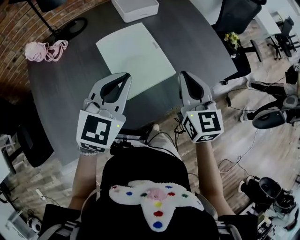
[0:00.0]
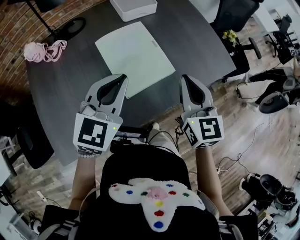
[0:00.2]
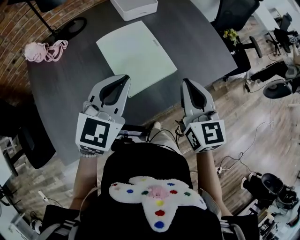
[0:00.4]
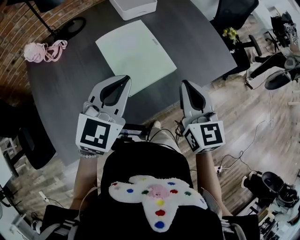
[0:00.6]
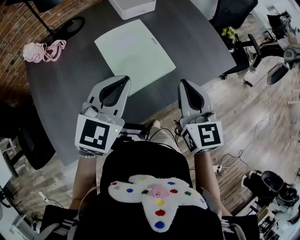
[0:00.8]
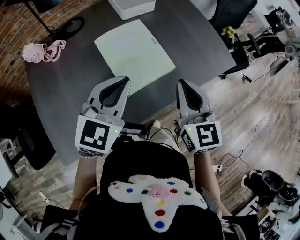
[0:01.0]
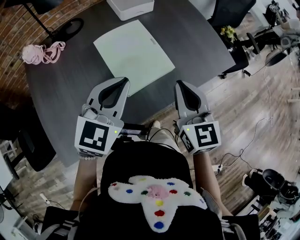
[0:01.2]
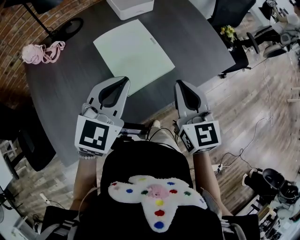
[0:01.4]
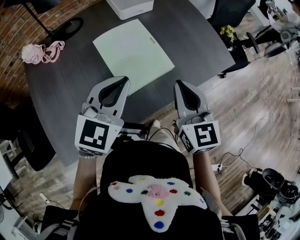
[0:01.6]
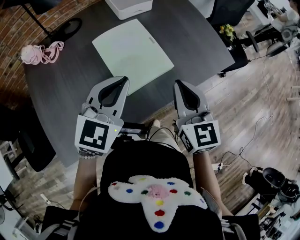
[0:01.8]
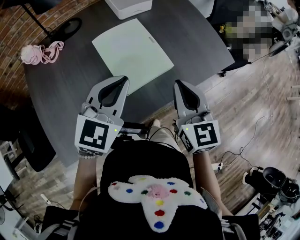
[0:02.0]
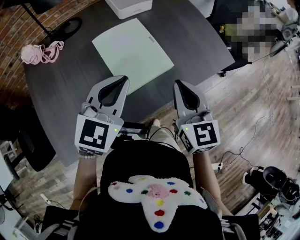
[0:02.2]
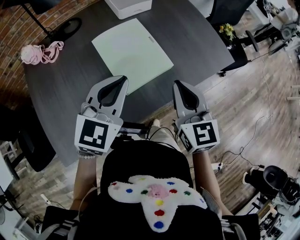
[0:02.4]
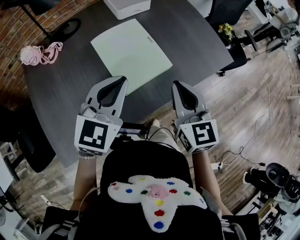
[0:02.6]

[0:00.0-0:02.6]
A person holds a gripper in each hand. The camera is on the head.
0:00.0 to 0:01.2: The right gripper travels backward by approximately 5 cm.
0:01.2 to 0:02.6: Neither gripper changes place.

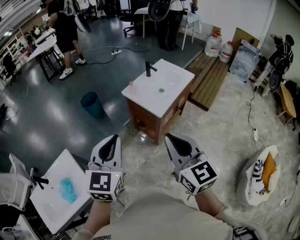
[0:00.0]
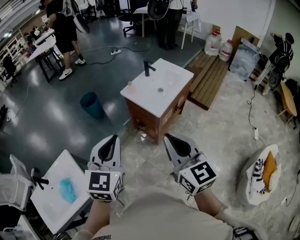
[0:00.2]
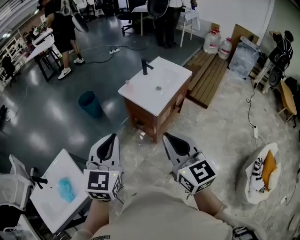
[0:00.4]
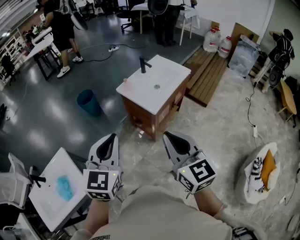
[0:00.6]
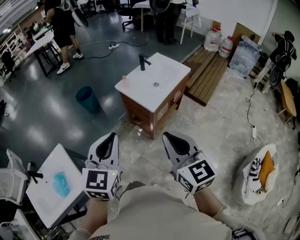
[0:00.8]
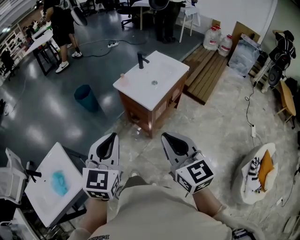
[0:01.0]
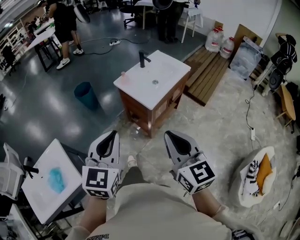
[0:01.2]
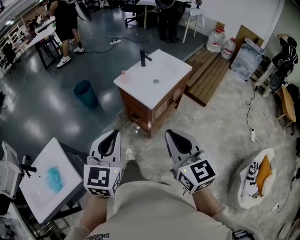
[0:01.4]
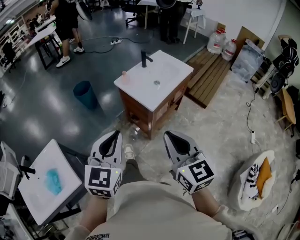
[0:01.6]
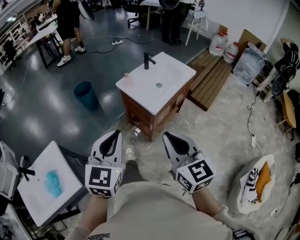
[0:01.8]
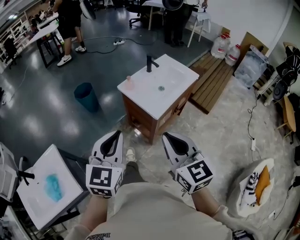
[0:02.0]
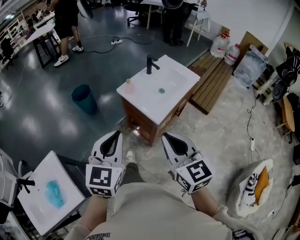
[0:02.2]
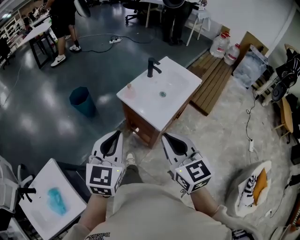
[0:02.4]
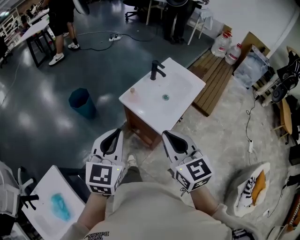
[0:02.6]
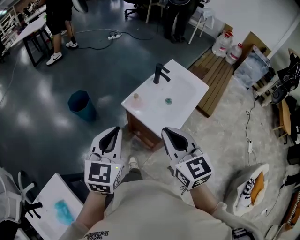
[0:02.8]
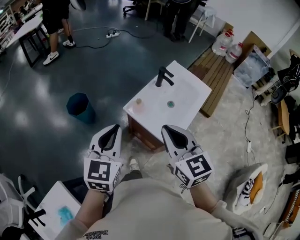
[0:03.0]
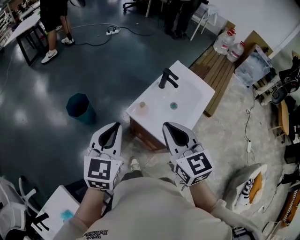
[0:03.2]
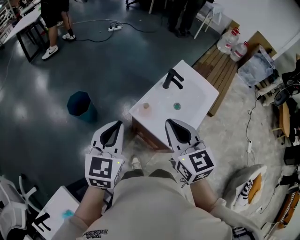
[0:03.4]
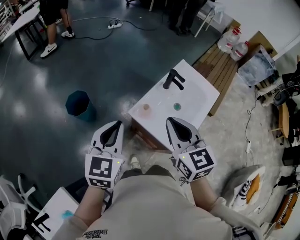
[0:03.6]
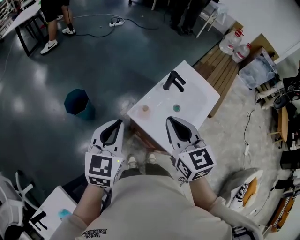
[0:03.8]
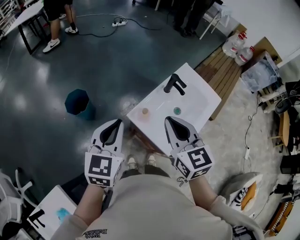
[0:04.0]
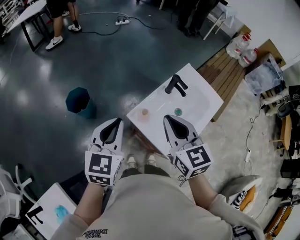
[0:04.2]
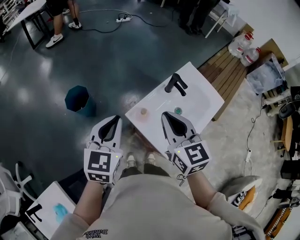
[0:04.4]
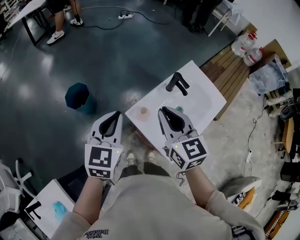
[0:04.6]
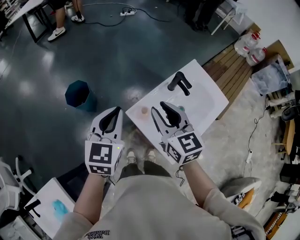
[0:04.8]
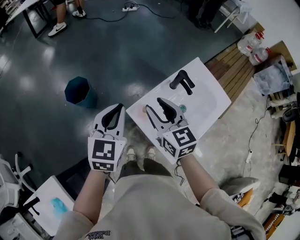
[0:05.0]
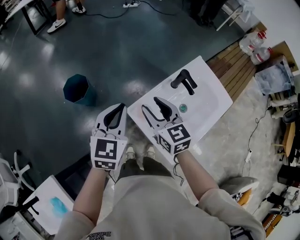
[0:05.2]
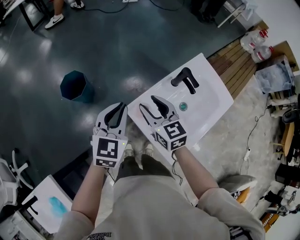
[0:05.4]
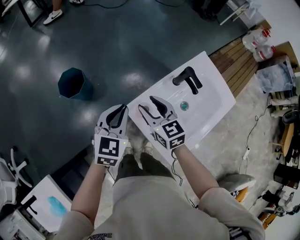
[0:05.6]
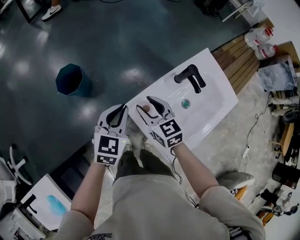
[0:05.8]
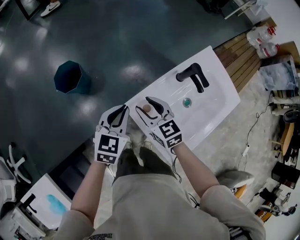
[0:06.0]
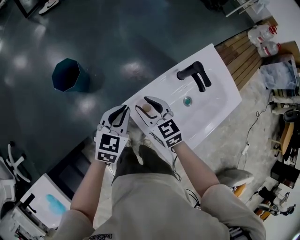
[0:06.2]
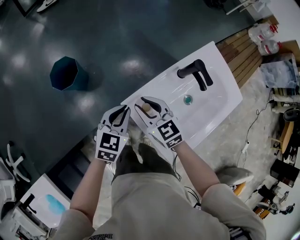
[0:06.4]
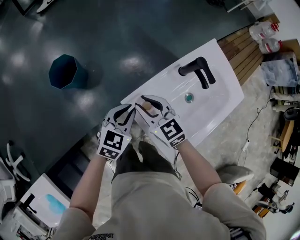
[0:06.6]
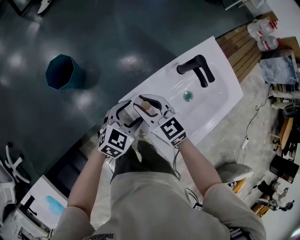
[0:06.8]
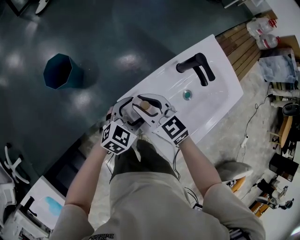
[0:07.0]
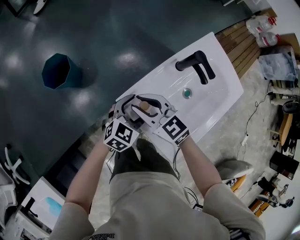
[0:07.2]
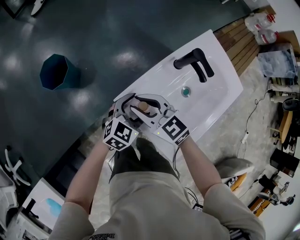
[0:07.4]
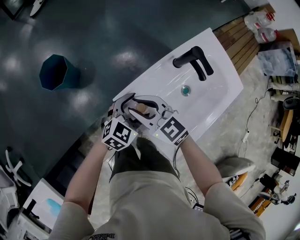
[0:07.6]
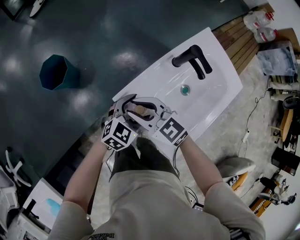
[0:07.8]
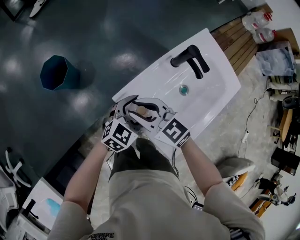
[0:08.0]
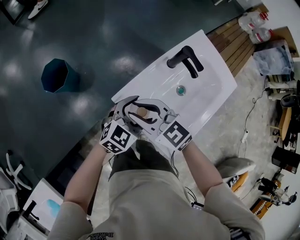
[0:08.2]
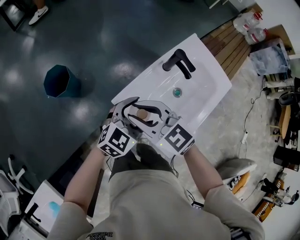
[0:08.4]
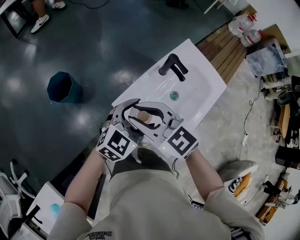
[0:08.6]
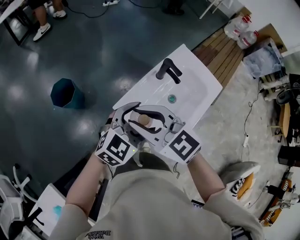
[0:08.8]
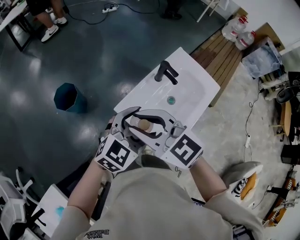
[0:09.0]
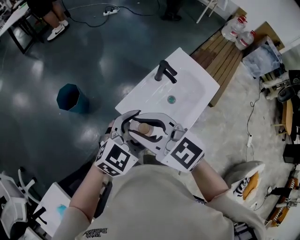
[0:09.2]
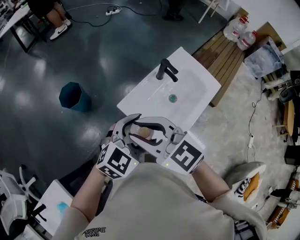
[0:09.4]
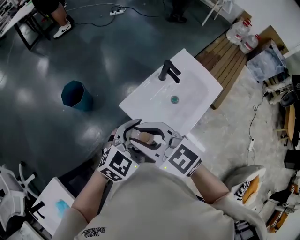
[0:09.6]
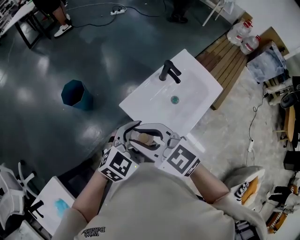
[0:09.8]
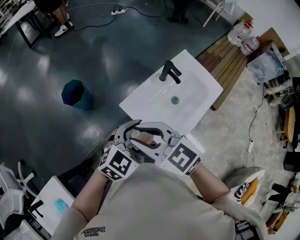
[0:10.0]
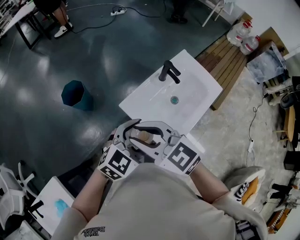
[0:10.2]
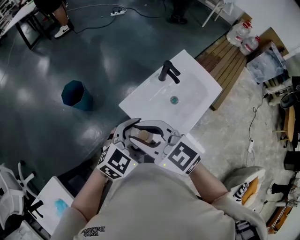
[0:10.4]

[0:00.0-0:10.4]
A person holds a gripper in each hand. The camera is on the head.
0:00.0 to 0:01.4: The grippers both shift to the right and downward by approximately 10 cm.
0:01.4 to 0:03.0: The pair of grippers is taken forward, roughly 40 cm.
0:03.0 to 0:04.4: The grippers both shift forward by some 15 cm.
0:04.4 to 0:06.0: The right gripper travels downward and forward by about 25 cm, rotates roughly 20 degrees, and opens. The left gripper goes about 20 cm downward.
0:06.0 to 0:07.4: The left gripper travels downward and to the right by some 15 cm, turns by about 20 degrees, and opens up.
0:07.4 to 0:09.0: The two grippers go roughly 25 cm upward.
0:09.0 to 0:10.4: The grippers both shift backward by some 5 cm.

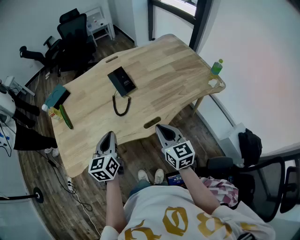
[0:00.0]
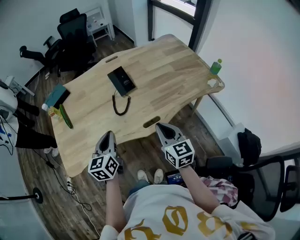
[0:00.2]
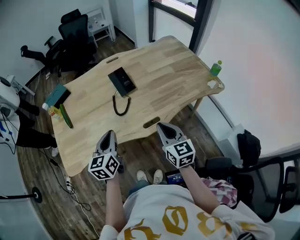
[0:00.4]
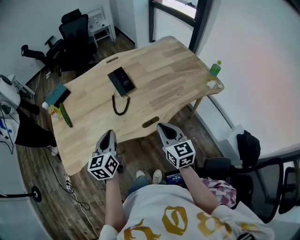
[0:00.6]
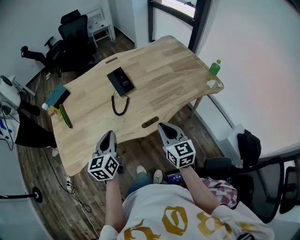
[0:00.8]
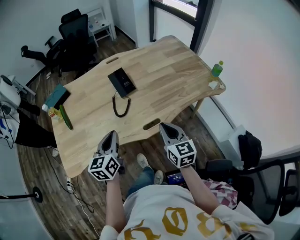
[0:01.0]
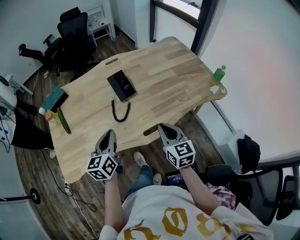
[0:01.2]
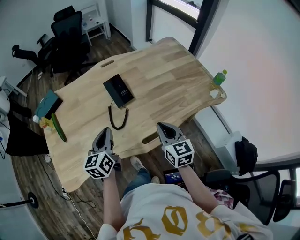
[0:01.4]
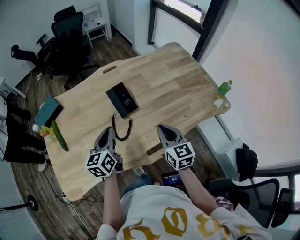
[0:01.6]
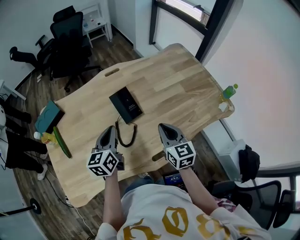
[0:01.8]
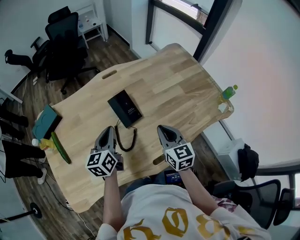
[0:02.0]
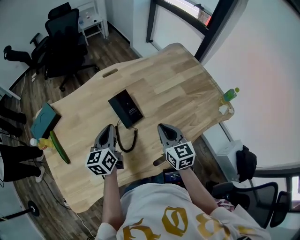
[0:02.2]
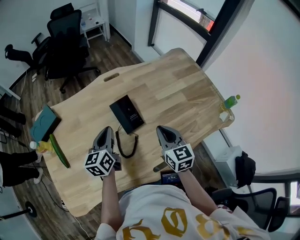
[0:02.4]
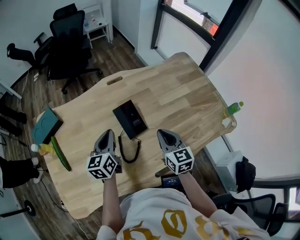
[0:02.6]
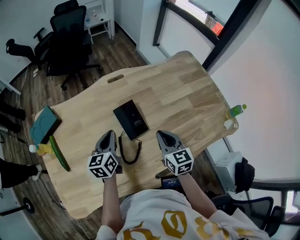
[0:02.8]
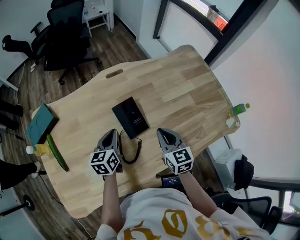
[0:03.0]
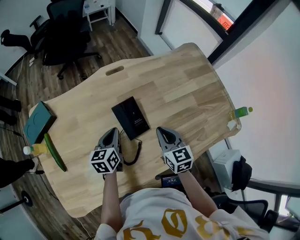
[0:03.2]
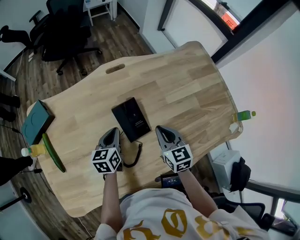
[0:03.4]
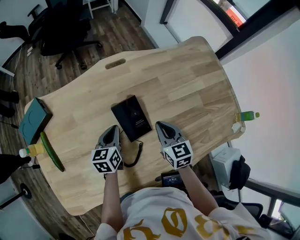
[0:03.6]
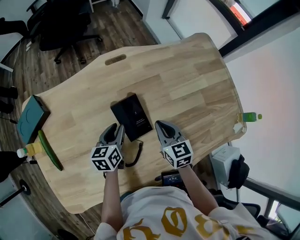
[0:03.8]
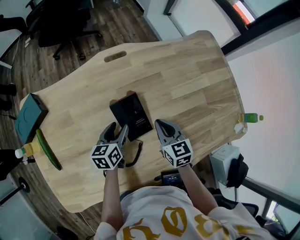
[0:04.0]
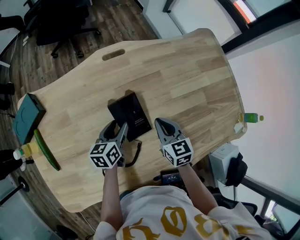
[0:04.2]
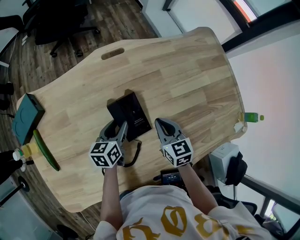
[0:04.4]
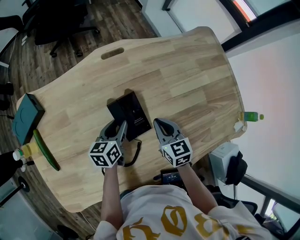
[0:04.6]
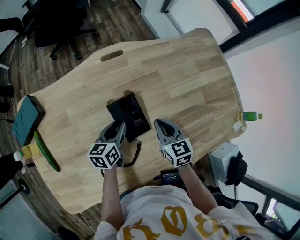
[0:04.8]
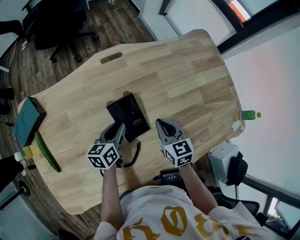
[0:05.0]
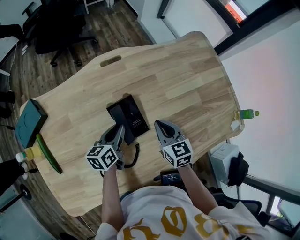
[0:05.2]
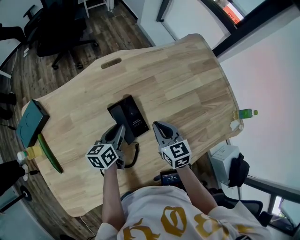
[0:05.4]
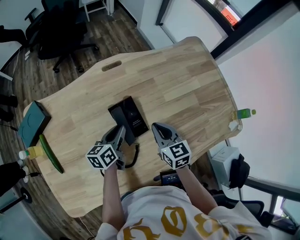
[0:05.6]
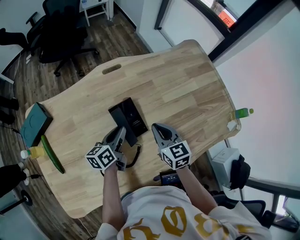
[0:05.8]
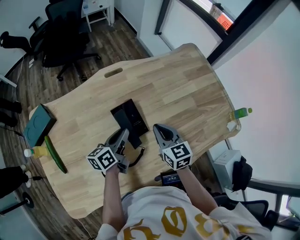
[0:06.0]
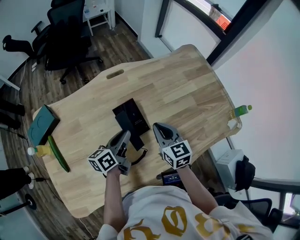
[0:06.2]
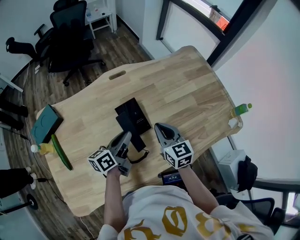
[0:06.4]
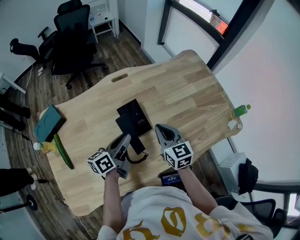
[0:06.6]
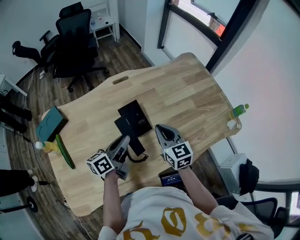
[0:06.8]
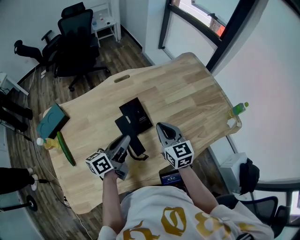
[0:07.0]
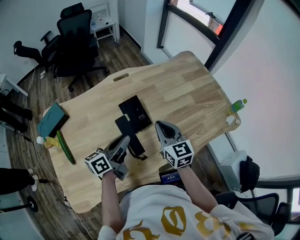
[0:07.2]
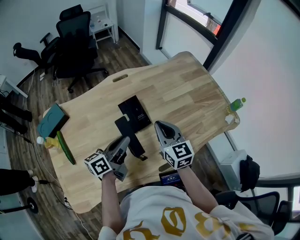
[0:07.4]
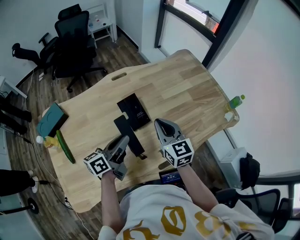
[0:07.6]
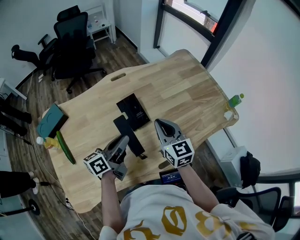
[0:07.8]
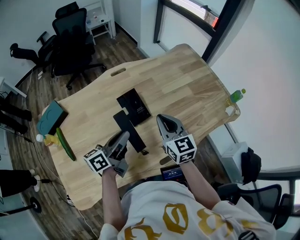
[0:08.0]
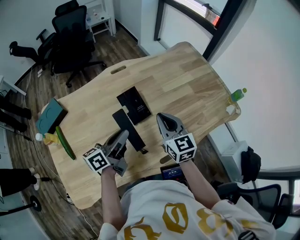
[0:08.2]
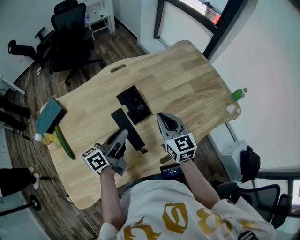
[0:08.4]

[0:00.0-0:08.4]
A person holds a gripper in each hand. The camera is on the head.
0:00.0 to 0:01.4: The two grippers go roughly 10 cm forward.
0:01.4 to 0:02.8: The grippers both shift forward by some 20 cm.
0:02.8 to 0:04.2: The two grippers go approximately 10 cm downward and forward. The left gripper opens.
0:04.2 to 0:05.6: The left gripper closes up.
0:05.6 to 0:07.0: Both grippers travel together upward and backward, about 15 cm. The left gripper turns by approximately 20 degrees.
0:07.0 to 0:08.4: The grippers move only a little.

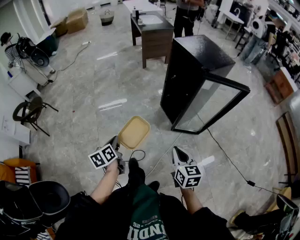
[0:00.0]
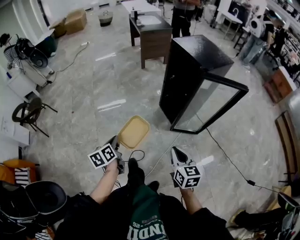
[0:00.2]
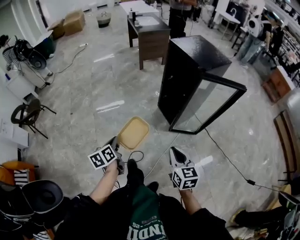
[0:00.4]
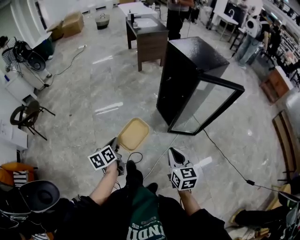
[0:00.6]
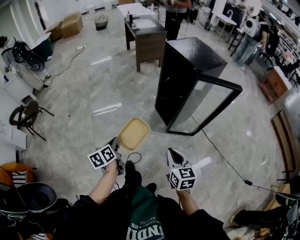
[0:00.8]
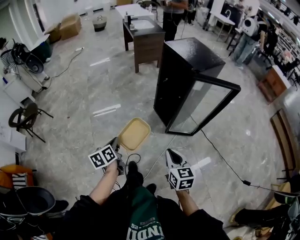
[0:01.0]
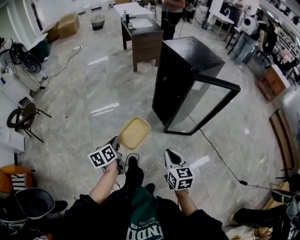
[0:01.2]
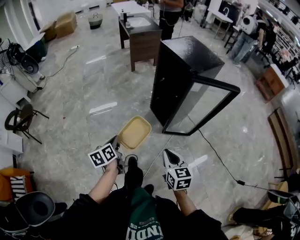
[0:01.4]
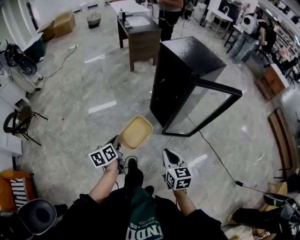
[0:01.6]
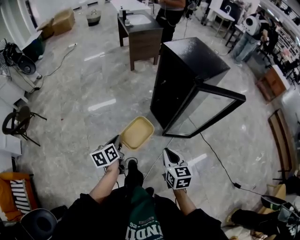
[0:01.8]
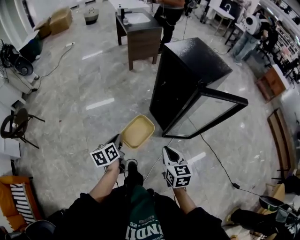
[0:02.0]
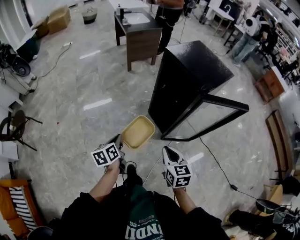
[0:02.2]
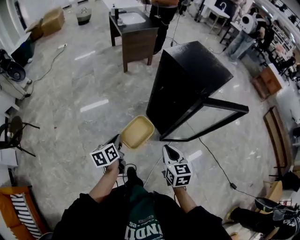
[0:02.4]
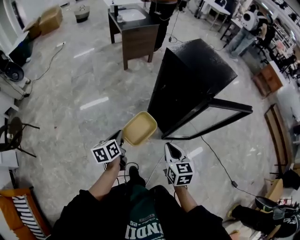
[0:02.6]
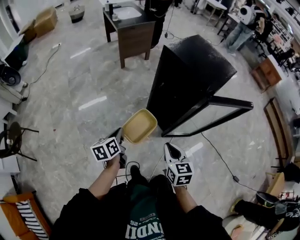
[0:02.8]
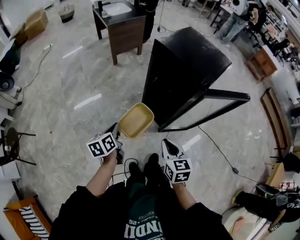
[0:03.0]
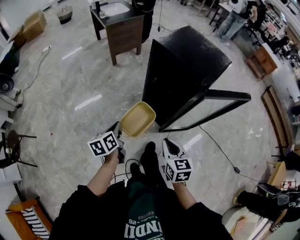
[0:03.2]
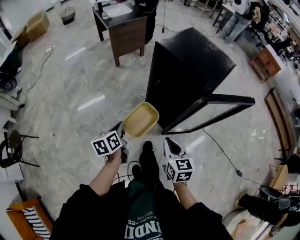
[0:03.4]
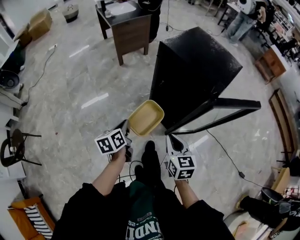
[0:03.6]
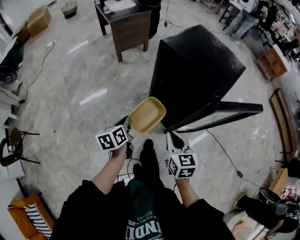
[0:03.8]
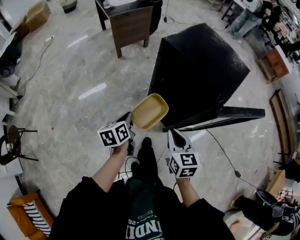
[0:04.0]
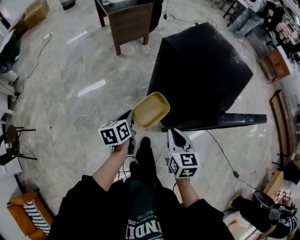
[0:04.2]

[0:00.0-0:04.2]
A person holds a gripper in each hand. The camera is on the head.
0:00.0 to 0:01.4: The left gripper moves some 5 cm.
0:01.4 to 0:02.8: Both grippers move forward, about 25 cm.
0:02.8 to 0:04.2: Both grippers travel together forward, roughly 15 cm.
